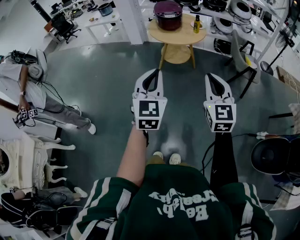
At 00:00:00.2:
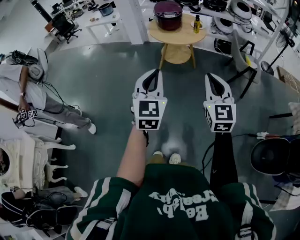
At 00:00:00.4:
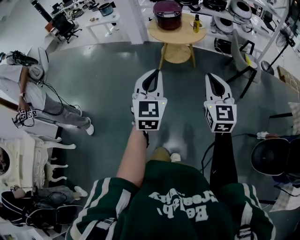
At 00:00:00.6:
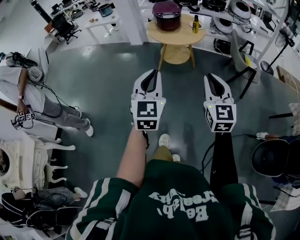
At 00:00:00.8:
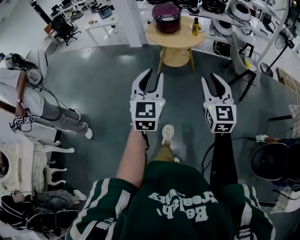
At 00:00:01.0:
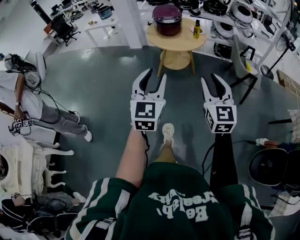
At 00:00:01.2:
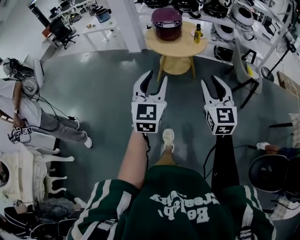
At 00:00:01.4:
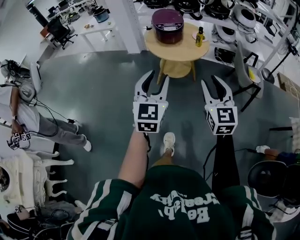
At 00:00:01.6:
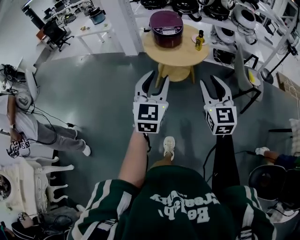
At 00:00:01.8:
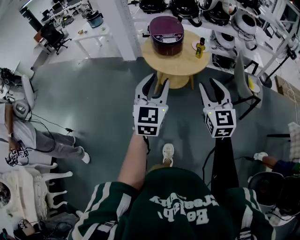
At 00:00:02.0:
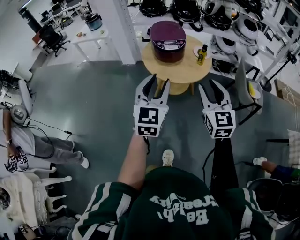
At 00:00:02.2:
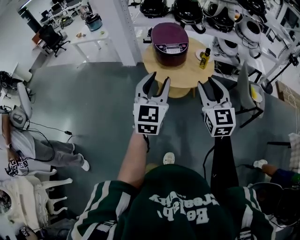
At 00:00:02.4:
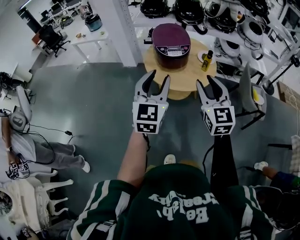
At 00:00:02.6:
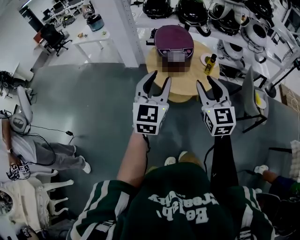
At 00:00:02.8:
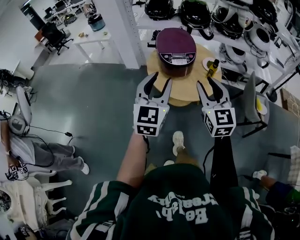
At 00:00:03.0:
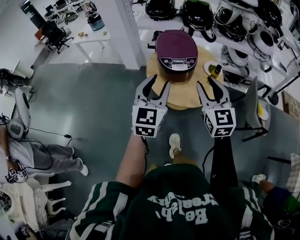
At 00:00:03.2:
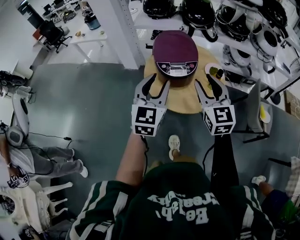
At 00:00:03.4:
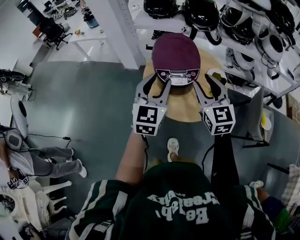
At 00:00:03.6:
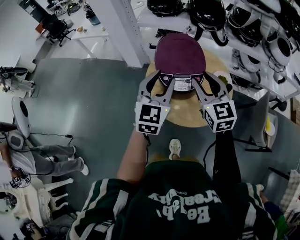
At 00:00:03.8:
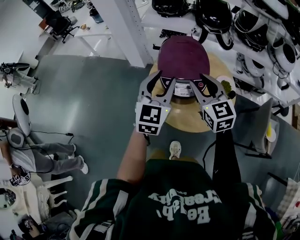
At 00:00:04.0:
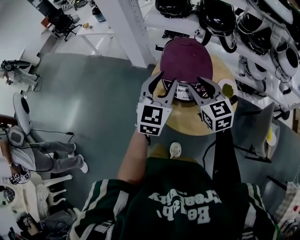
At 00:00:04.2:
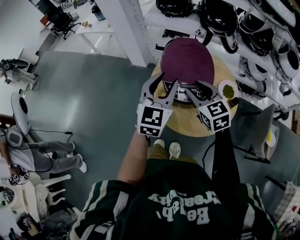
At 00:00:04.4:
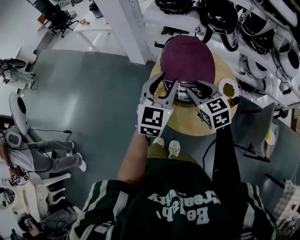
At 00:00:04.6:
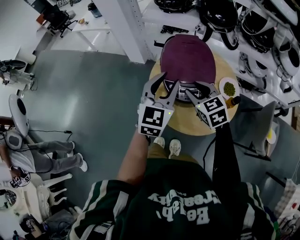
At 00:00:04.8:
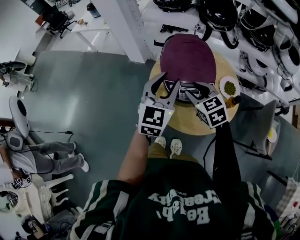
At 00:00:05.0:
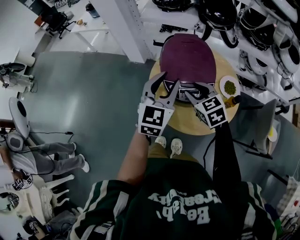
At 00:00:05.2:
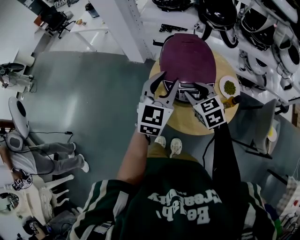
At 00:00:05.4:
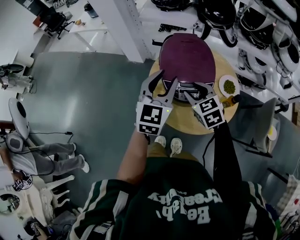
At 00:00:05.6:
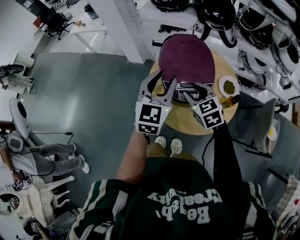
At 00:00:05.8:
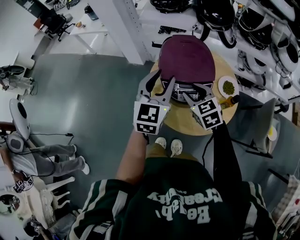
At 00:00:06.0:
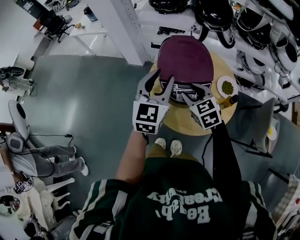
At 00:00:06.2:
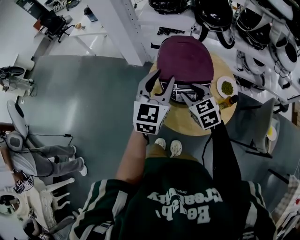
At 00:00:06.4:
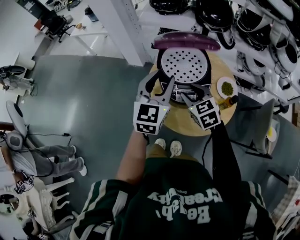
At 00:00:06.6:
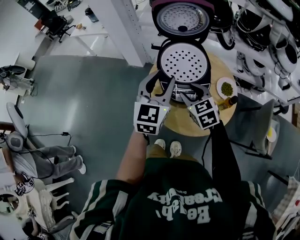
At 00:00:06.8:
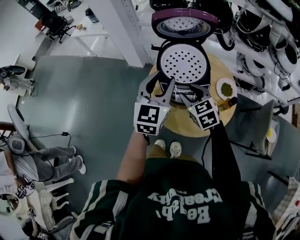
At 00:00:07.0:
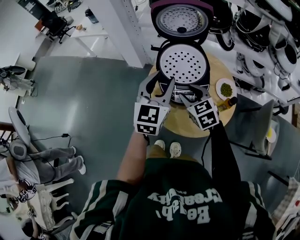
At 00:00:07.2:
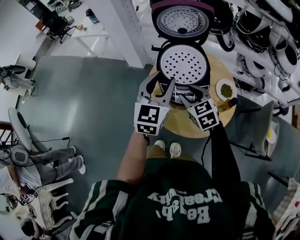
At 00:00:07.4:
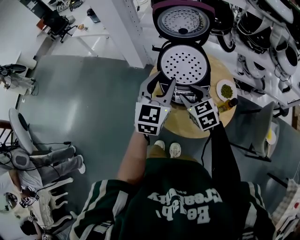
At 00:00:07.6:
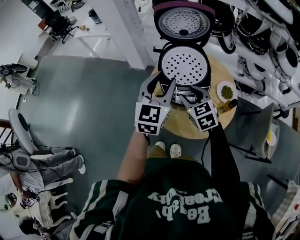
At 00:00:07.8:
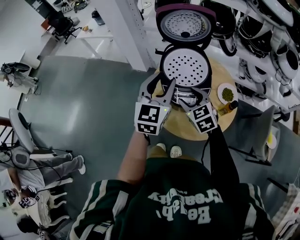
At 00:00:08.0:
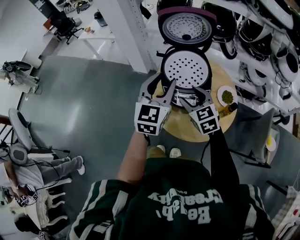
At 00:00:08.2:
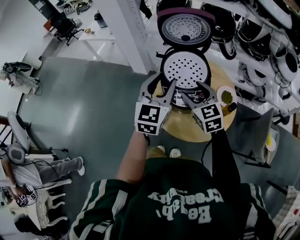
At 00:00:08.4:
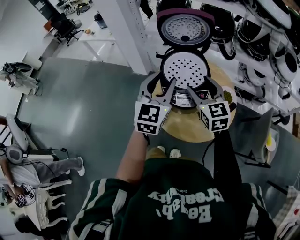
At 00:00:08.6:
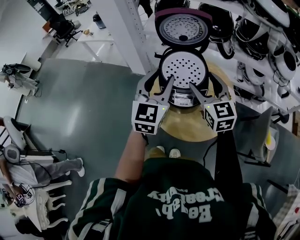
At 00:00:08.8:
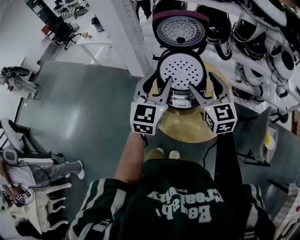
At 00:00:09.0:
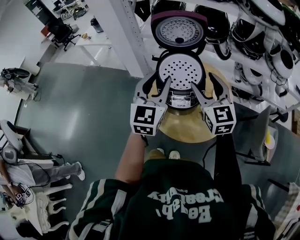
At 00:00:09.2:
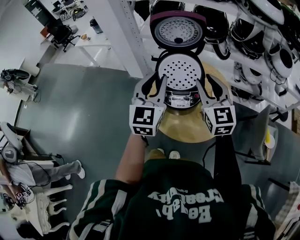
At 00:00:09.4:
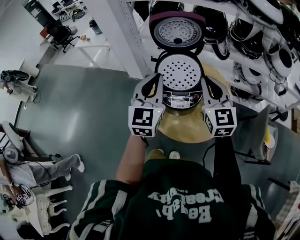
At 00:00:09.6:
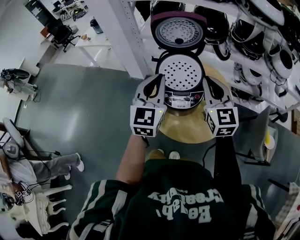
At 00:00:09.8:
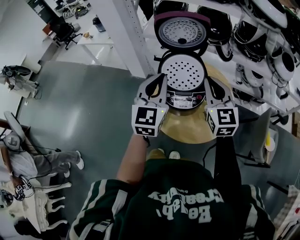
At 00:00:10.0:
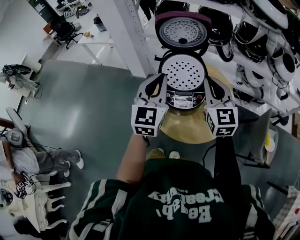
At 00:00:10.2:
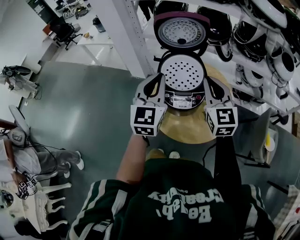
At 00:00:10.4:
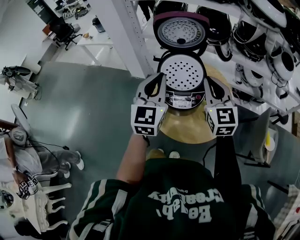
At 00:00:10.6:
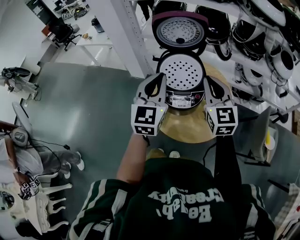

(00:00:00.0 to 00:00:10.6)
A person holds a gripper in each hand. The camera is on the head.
00:00:00.0 - 00:00:01.6: Both grippers travel together forward, about 25 cm. The right gripper opens its fingers. Meanwhile the left gripper opens up.
00:00:01.6 - 00:00:03.0: The grippers both shift forward by some 30 cm.
00:00:03.0 - 00:00:04.6: The right gripper shifts approximately 30 cm forward and downward, and rotates approximately 40 degrees. The left gripper shifts some 25 cm forward.
00:00:04.6 - 00:00:06.0: The grippers make only small movements.
00:00:06.0 - 00:00:07.6: Both grippers stay put.
00:00:07.6 - 00:00:09.0: The right gripper heads upward and to the right, covering approximately 15 cm, and turns by some 30 degrees. The left gripper goes some 5 cm upward.
00:00:09.0 - 00:00:10.6: The right gripper closes; the left gripper closes up.

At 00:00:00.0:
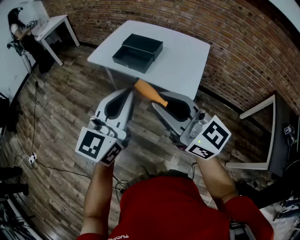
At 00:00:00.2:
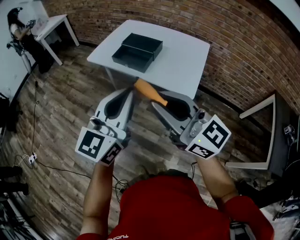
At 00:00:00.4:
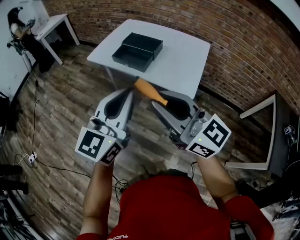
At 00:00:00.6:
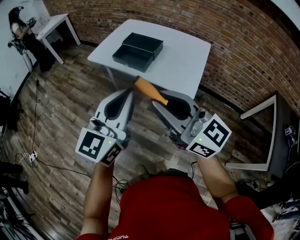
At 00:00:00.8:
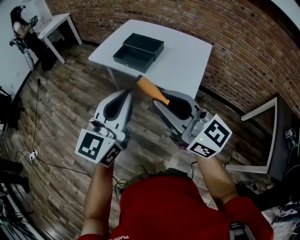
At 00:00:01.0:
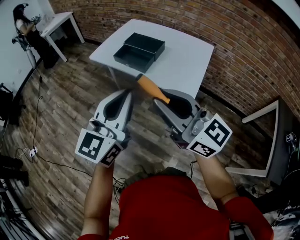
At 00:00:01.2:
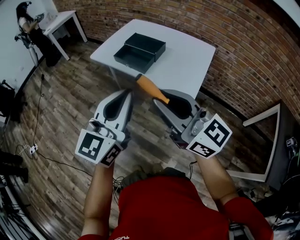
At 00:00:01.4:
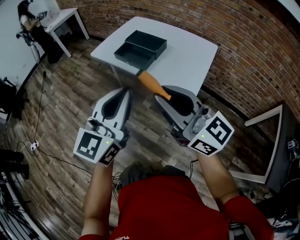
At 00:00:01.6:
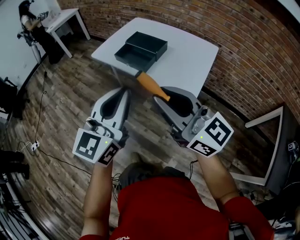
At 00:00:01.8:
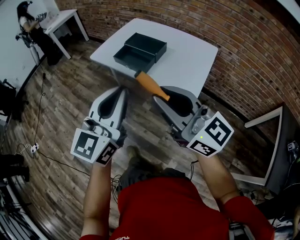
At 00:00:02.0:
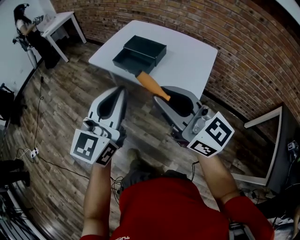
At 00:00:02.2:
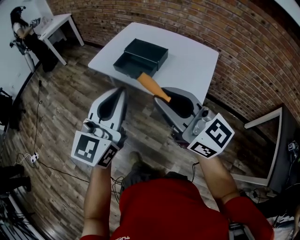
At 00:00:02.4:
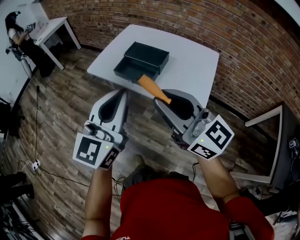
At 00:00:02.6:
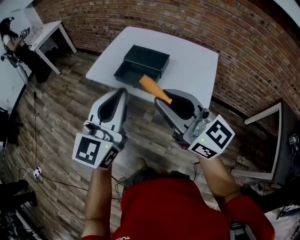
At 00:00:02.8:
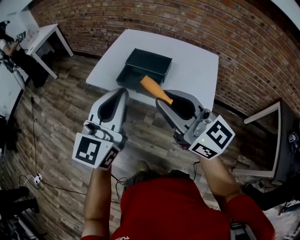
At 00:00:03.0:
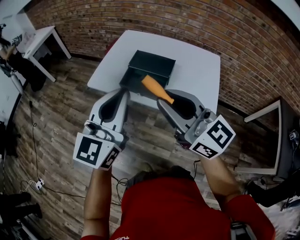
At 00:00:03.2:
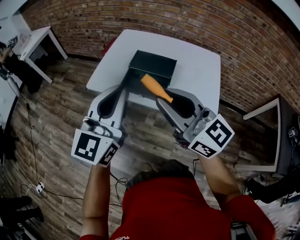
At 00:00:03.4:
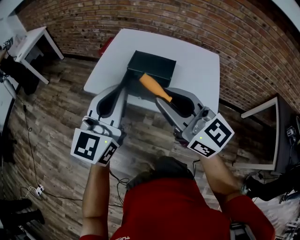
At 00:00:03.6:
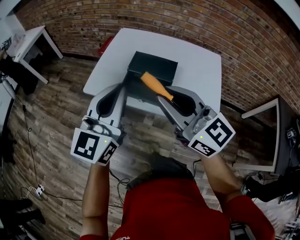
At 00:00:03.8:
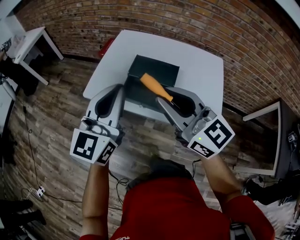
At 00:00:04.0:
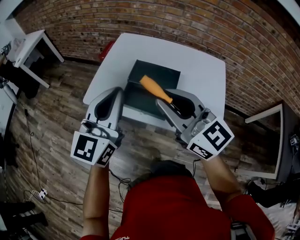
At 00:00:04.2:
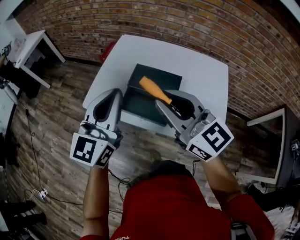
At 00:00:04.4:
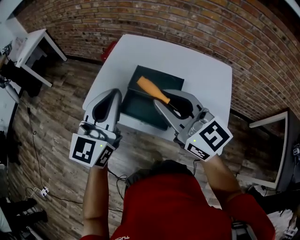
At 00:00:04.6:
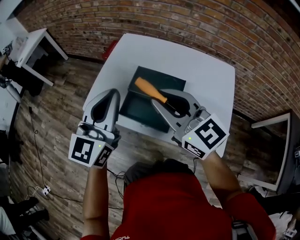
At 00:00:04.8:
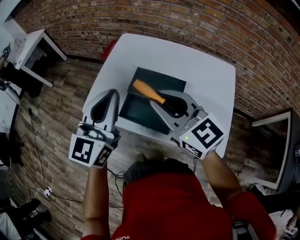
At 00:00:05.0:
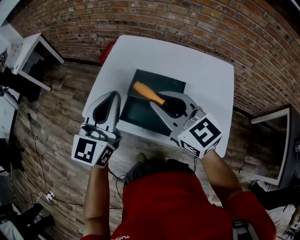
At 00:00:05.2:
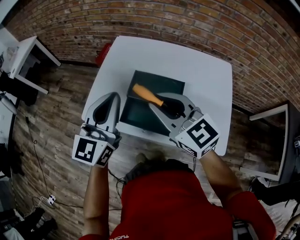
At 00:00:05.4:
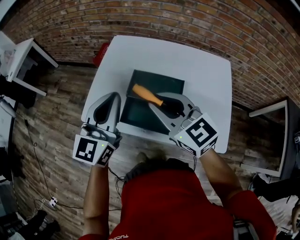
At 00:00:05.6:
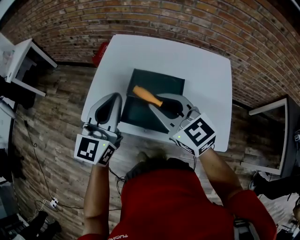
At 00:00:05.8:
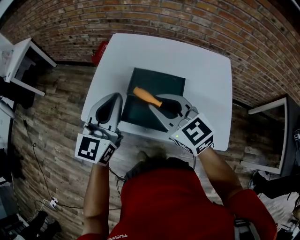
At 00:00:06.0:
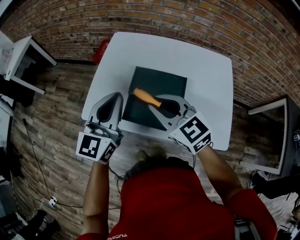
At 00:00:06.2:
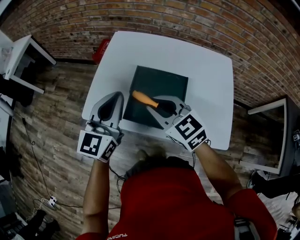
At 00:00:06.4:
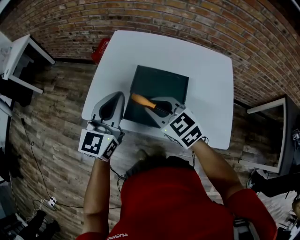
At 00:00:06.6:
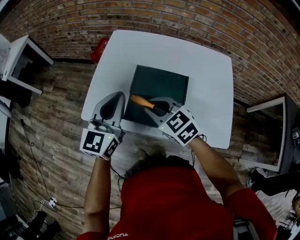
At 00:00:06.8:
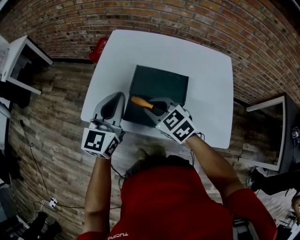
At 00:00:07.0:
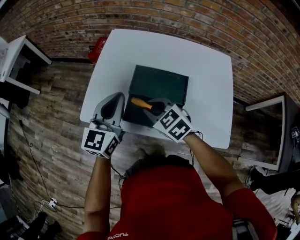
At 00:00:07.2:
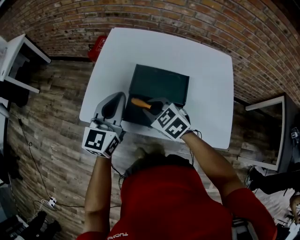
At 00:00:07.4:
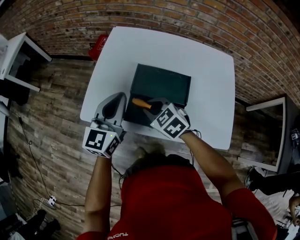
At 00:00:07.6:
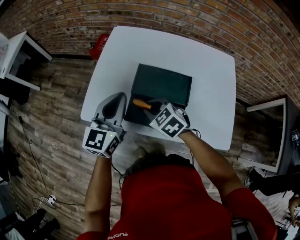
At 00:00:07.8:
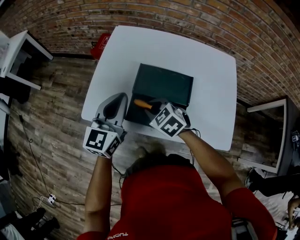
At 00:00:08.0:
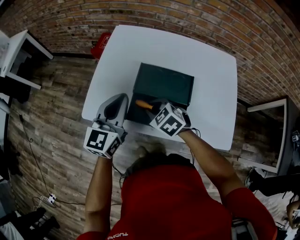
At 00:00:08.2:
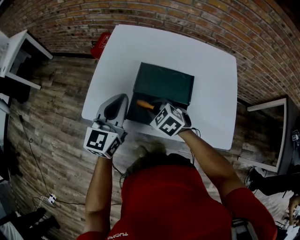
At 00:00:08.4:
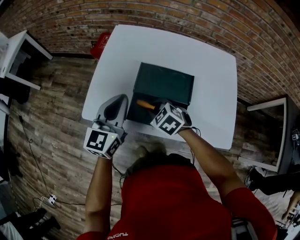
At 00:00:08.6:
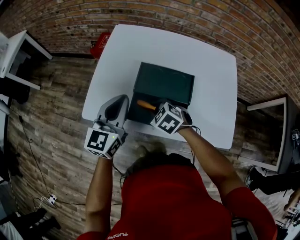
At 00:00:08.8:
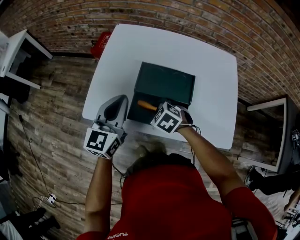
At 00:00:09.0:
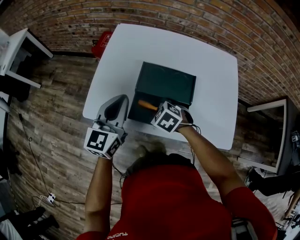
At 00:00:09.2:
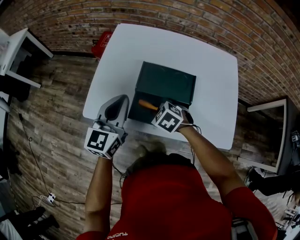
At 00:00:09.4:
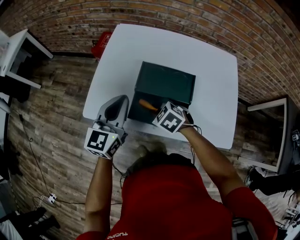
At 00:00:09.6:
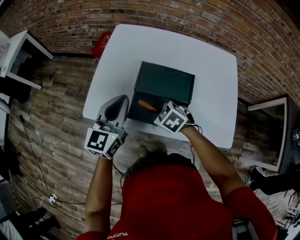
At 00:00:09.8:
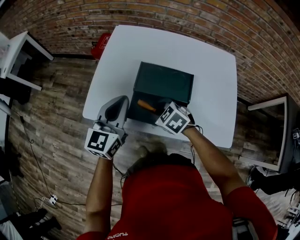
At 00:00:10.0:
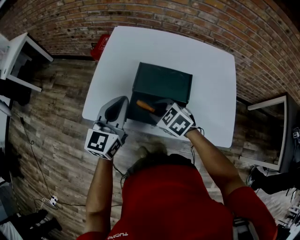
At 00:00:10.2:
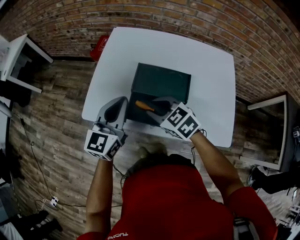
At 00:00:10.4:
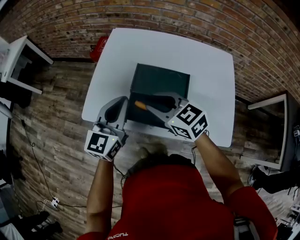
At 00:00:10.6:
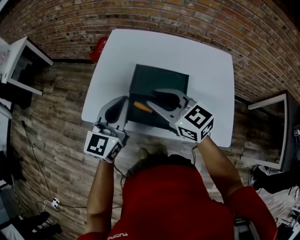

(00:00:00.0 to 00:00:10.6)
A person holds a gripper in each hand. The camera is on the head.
00:00:00.0 - 00:00:01.6: The right gripper heads to the right, covering some 5 cm.
00:00:01.6 - 00:00:03.0: Both grippers travel together forward and to the left, some 25 cm.
00:00:03.0 - 00:00:04.6: Both grippers travel together forward, approximately 20 cm.
00:00:04.6 - 00:00:06.0: The two grippers go about 5 cm downward.
00:00:06.0 - 00:00:07.6: The right gripper travels downward by roughly 15 cm, and rotates roughly 30 degrees. Meanwhile the left gripper is displaced downward by some 5 cm.
00:00:07.6 - 00:00:09.0: The right gripper travels downward by about 5 cm.
00:00:09.0 - 00:00:10.6: The right gripper goes roughly 20 cm upward, and points its fingers some 50 degrees further upward.

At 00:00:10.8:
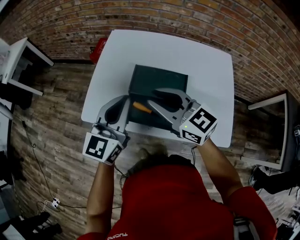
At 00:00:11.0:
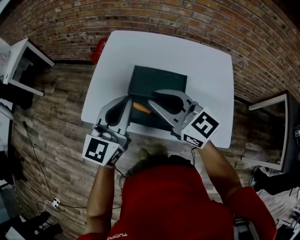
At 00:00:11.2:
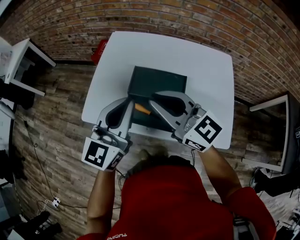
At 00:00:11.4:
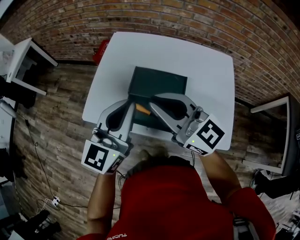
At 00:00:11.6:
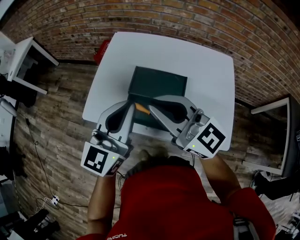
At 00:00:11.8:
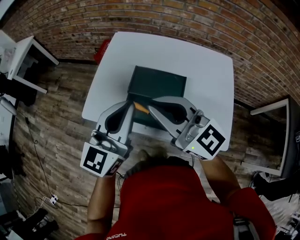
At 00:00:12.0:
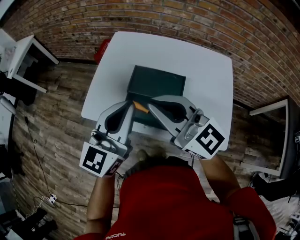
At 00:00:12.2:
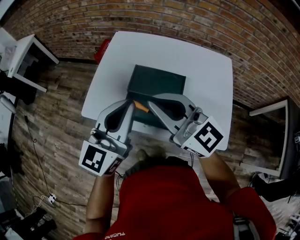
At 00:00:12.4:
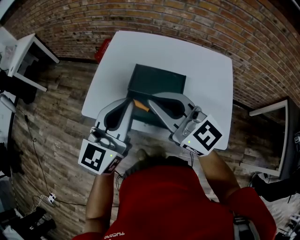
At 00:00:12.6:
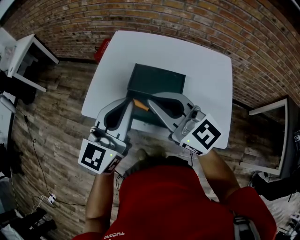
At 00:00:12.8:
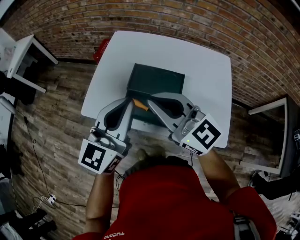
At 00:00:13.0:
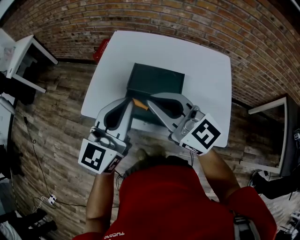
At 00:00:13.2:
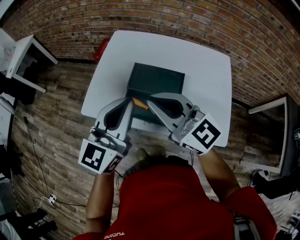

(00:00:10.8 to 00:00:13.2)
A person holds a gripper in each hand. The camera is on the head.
00:00:10.8 - 00:00:12.0: The right gripper heads upward and backward, covering about 10 cm, and closes. The left gripper heads upward, covering approximately 5 cm.
00:00:12.0 - 00:00:13.2: The grippers move only a little.
